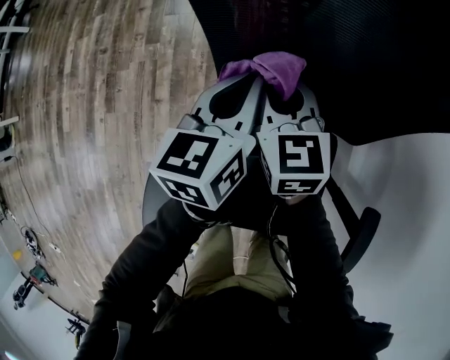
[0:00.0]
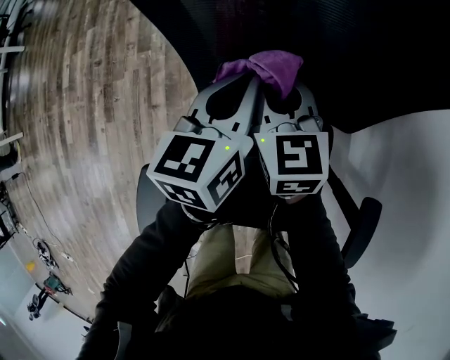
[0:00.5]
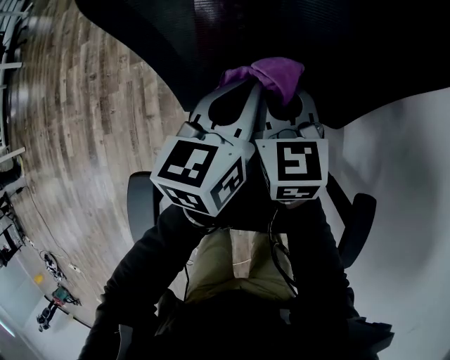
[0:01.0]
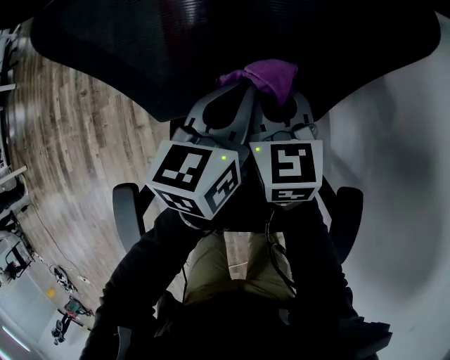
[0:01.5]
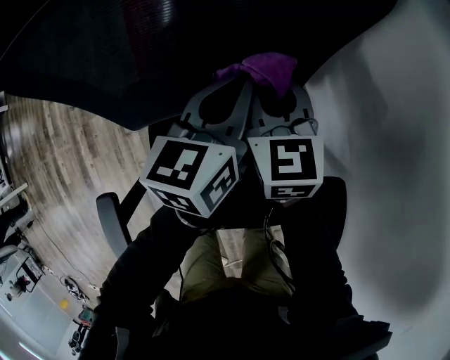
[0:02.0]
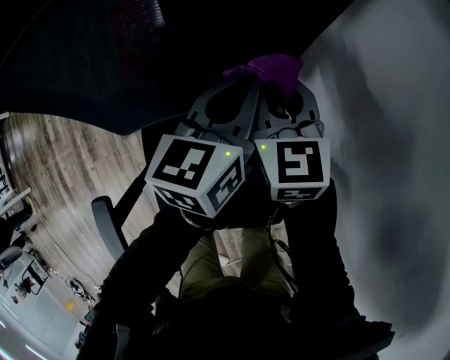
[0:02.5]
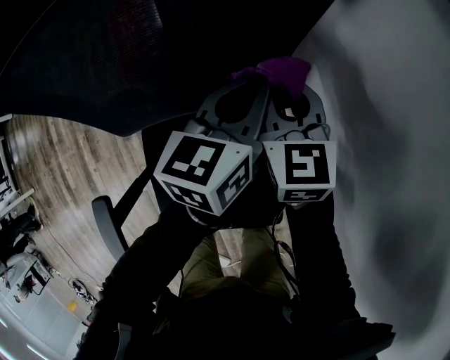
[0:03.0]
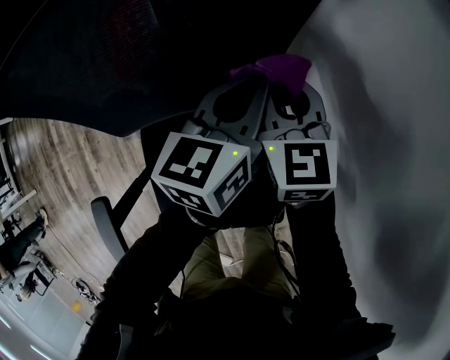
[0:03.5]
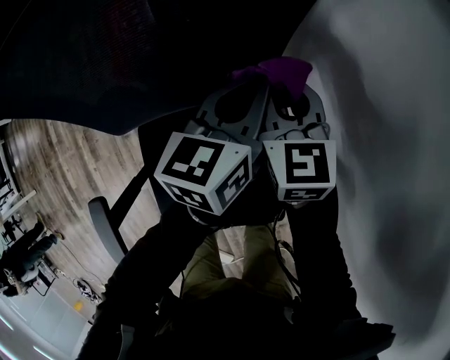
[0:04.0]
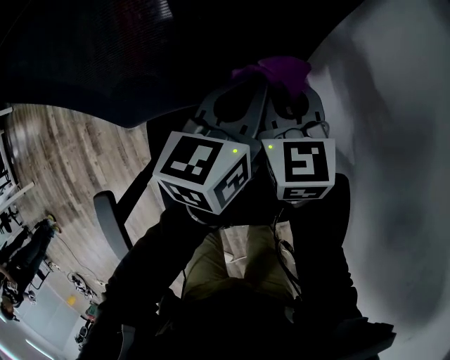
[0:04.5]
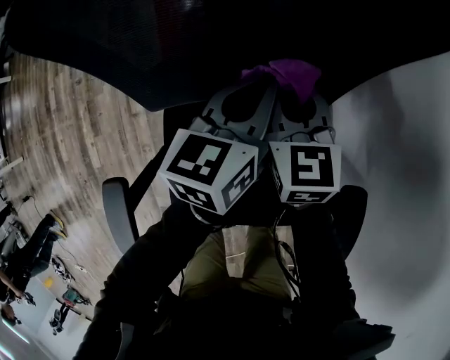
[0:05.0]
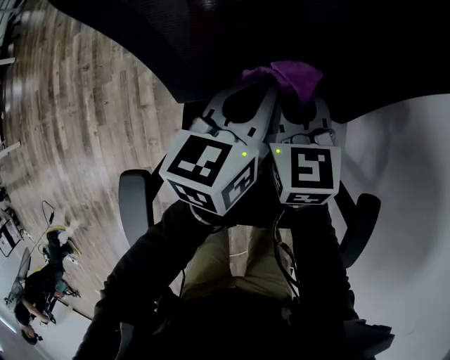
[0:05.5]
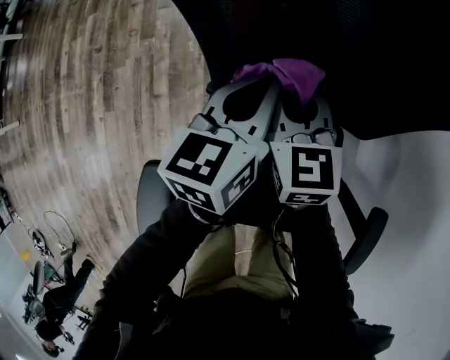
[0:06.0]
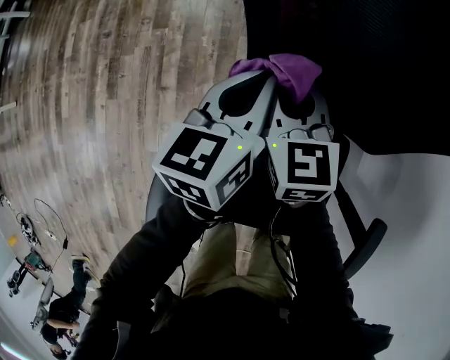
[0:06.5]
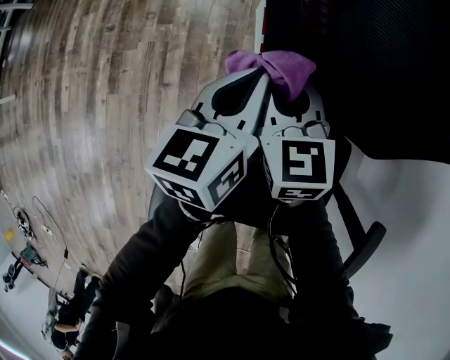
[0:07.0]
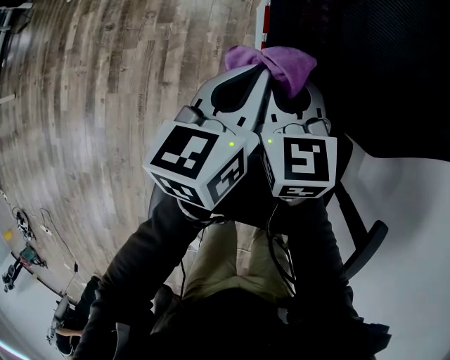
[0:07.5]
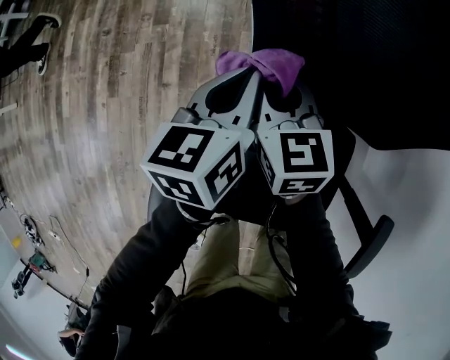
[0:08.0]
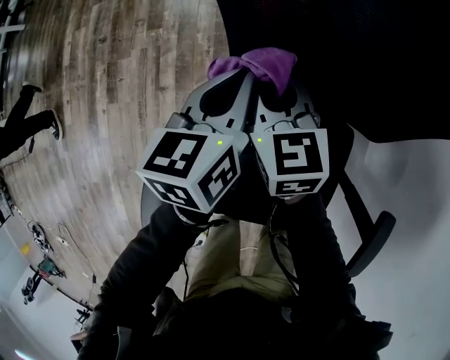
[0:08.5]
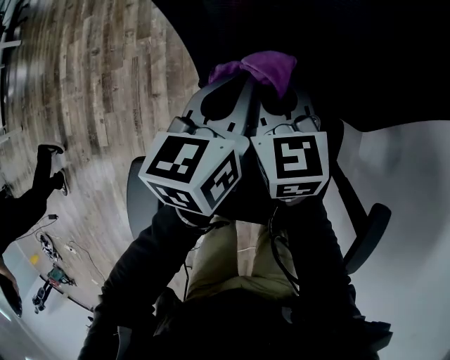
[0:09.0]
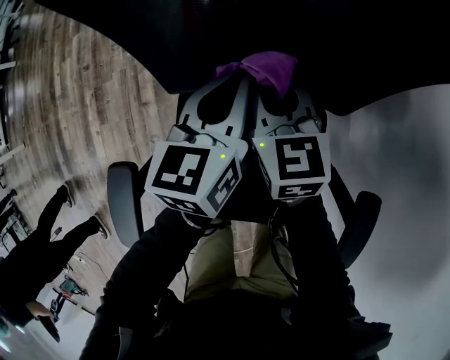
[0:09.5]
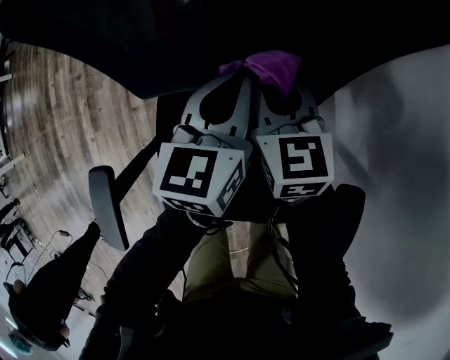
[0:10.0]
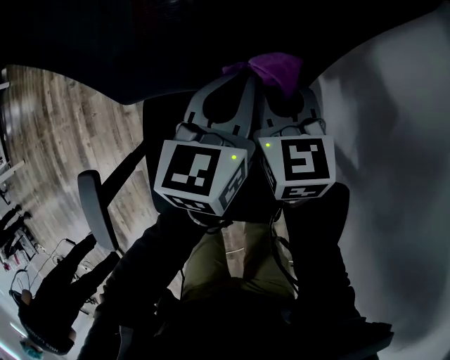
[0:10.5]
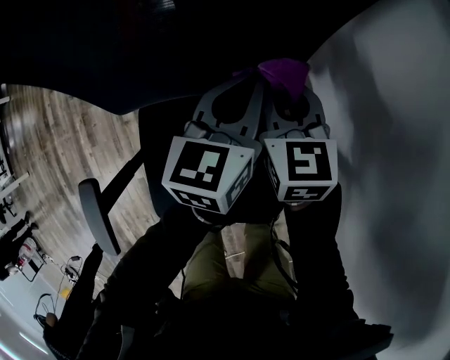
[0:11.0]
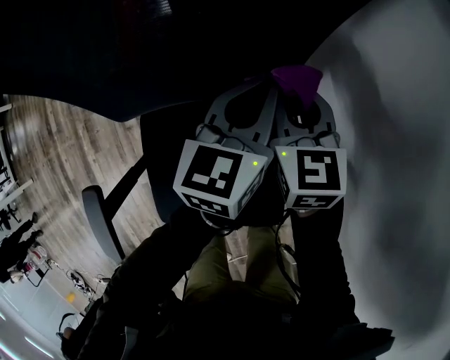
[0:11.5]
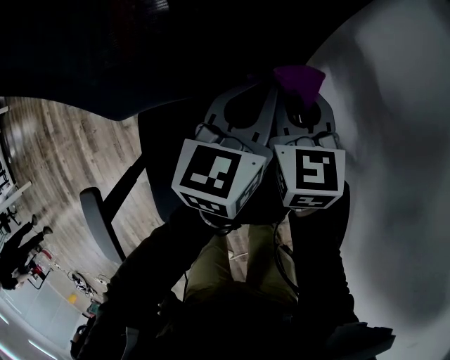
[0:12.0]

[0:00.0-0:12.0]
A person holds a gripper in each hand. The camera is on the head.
0:00.0 to 0:02.0: The two grippers go some 25 cm to the right.
0:02.0 to 0:04.0: Both grippers travel together to the right, approximately 10 cm.
0:04.0 to 0:06.0: The two grippers go about 30 cm to the left.
0:06.0 to 0:08.0: The two grippers go about 10 cm to the left.
0:08.0 to 0:10.0: The two grippers go roughly 25 cm to the right.
0:10.0 to 0:12.0: The grippers both shift to the right by roughly 10 cm.

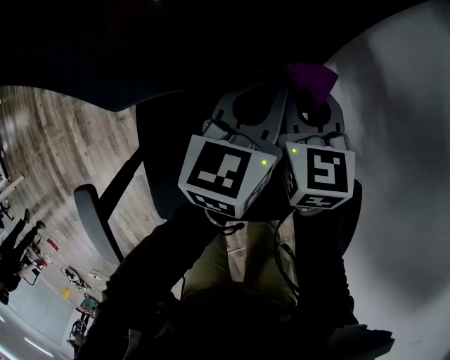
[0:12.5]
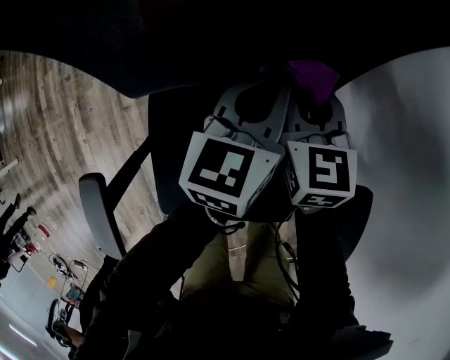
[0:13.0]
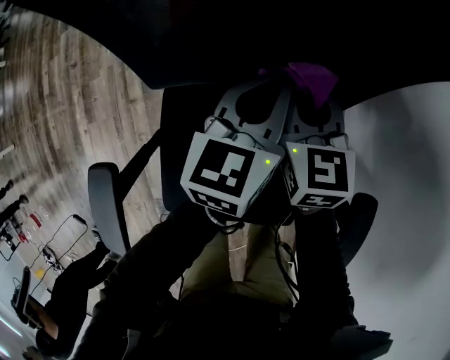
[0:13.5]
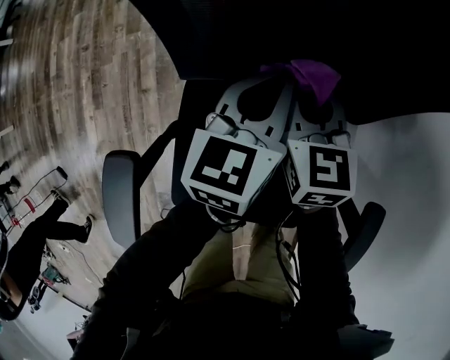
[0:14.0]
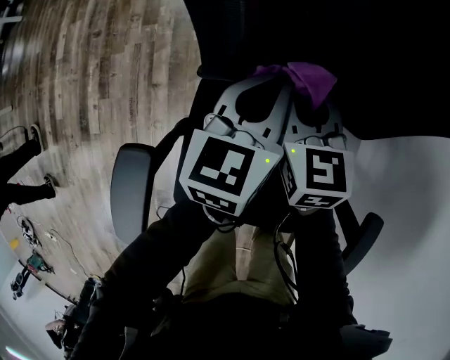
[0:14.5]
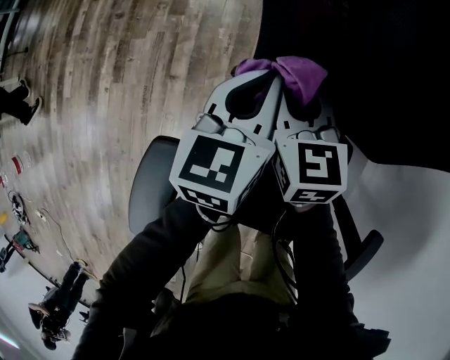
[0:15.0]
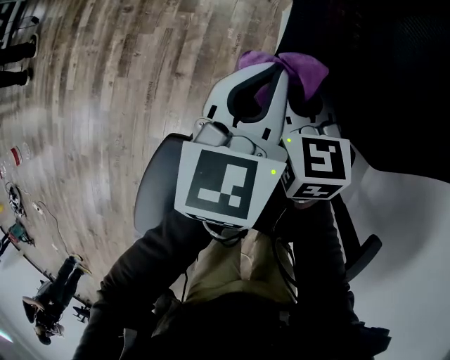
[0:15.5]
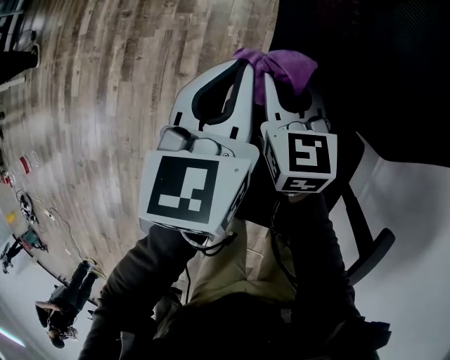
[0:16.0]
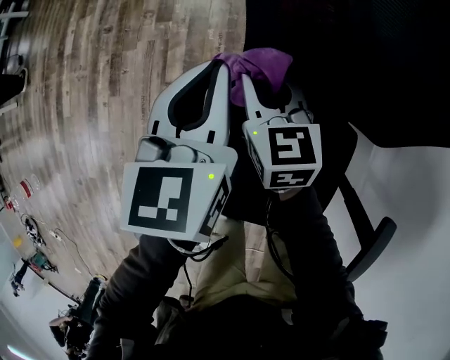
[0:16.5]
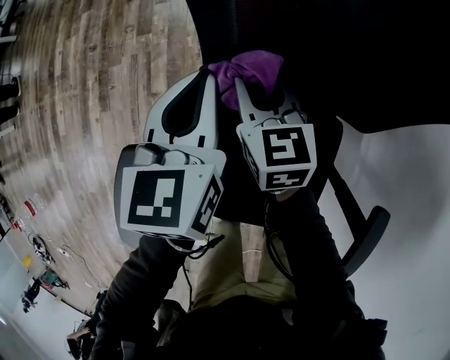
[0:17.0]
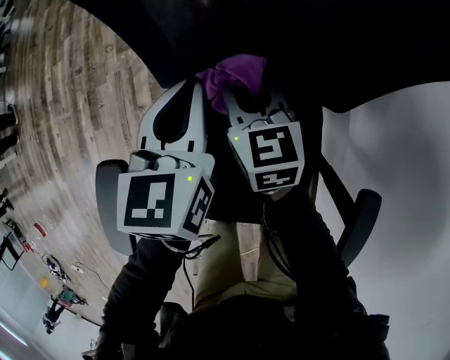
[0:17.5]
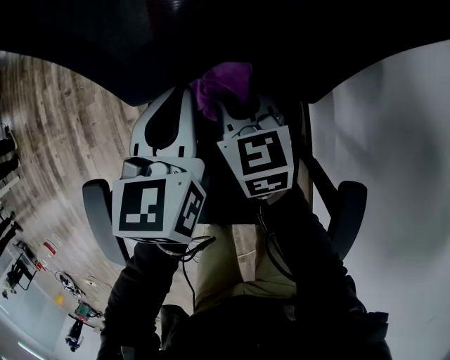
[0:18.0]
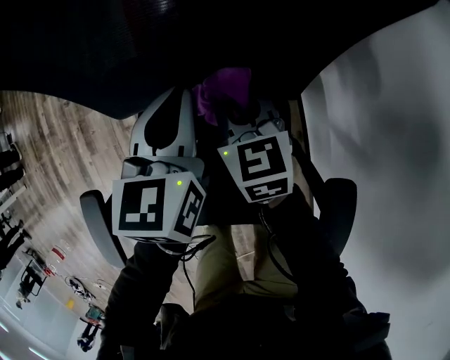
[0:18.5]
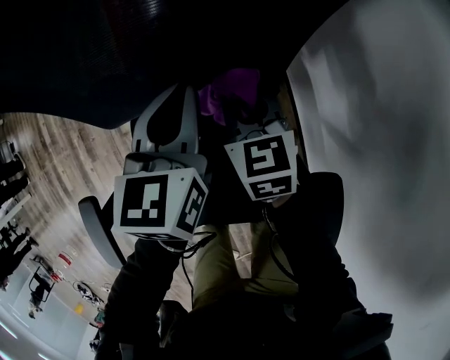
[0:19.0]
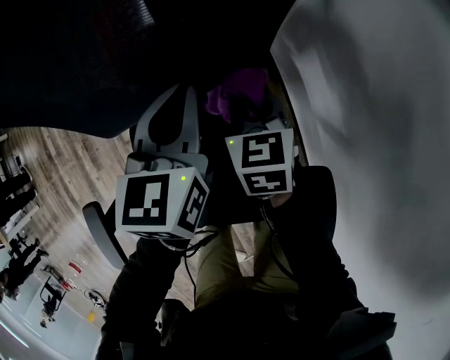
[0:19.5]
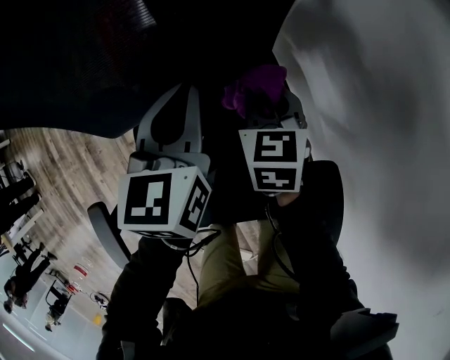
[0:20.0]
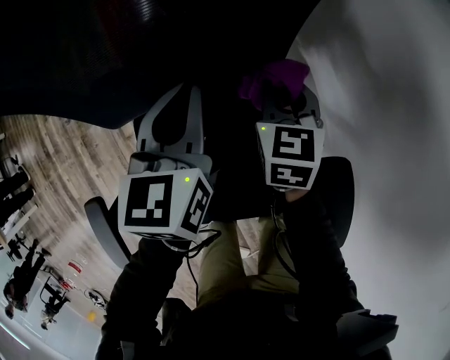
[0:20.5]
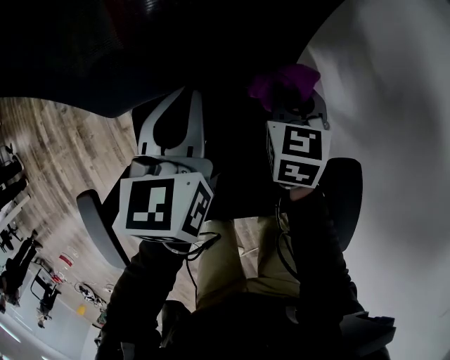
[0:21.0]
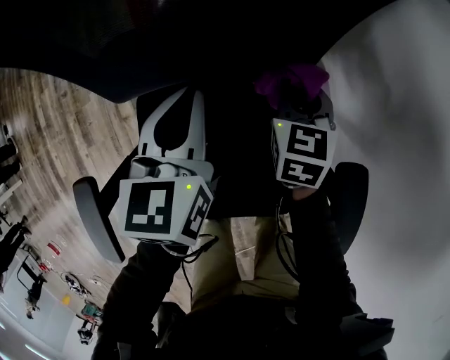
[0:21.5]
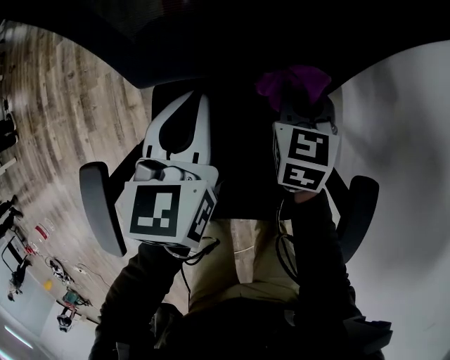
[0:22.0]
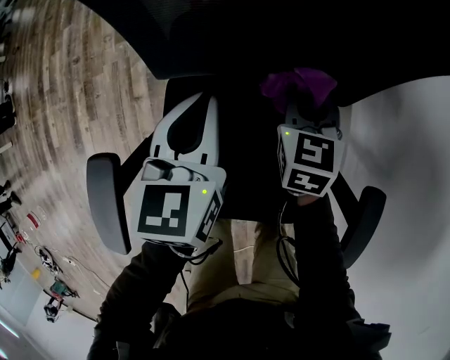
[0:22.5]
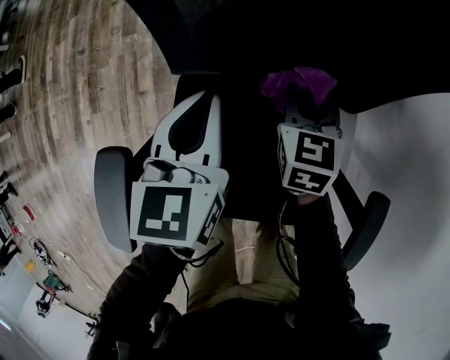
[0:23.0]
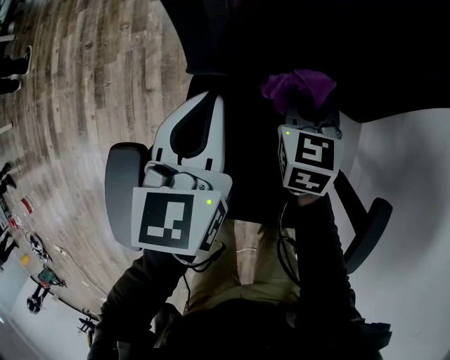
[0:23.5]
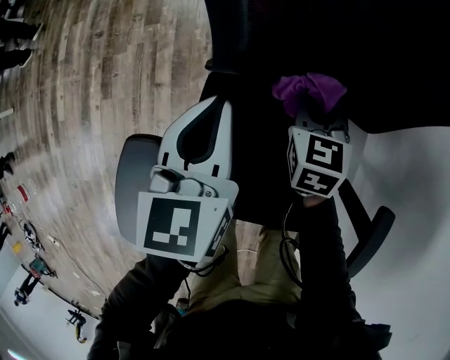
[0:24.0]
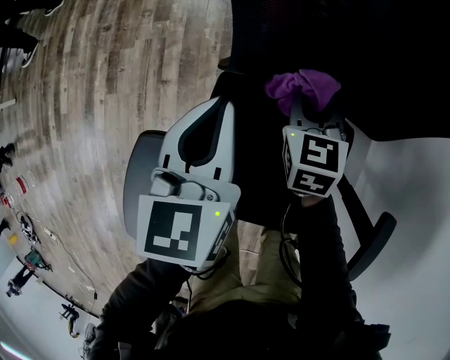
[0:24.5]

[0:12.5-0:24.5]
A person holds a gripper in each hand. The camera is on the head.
0:12.5 to 0:14.5: The two grippers go approximately 25 cm to the left. The right gripper rotates approximately 20 degrees.
0:14.5 to 0:16.5: Both grippers move to the left, some 15 cm.
0:16.5 to 0:18.5: Both grippers move to the right, some 25 cm.
0:18.5 to 0:20.5: The left gripper moves to the right, some 10 cm. Meanwhile the right gripper shifts some 15 cm to the right, and turns by approximately 30 degrees.
0:20.5 to 0:22.5: The grippers both shift to the left by about 20 cm.
0:22.5 to 0:24.5: The two grippers go roughly 15 cm to the left.

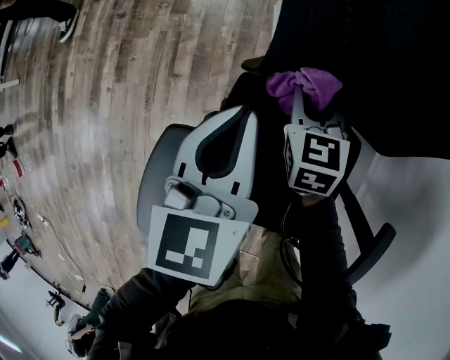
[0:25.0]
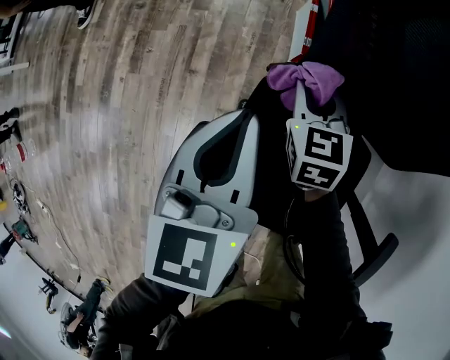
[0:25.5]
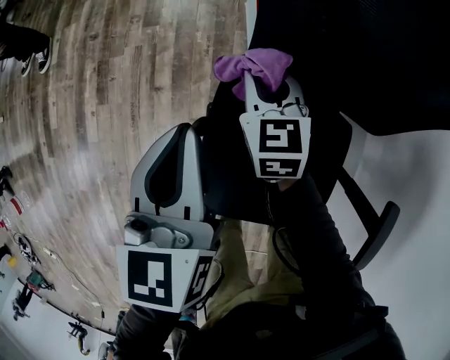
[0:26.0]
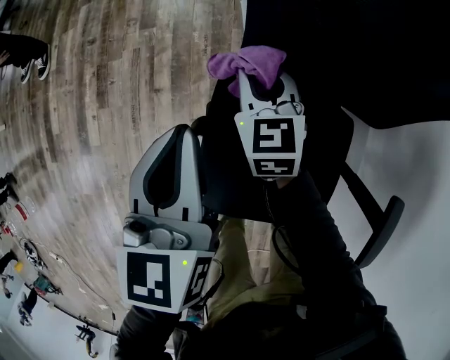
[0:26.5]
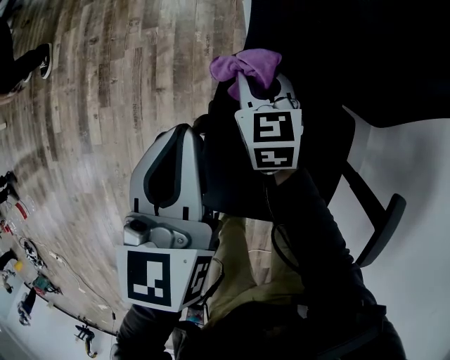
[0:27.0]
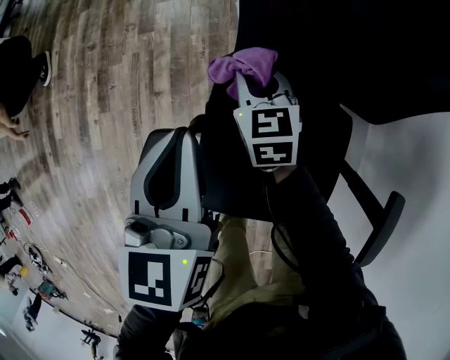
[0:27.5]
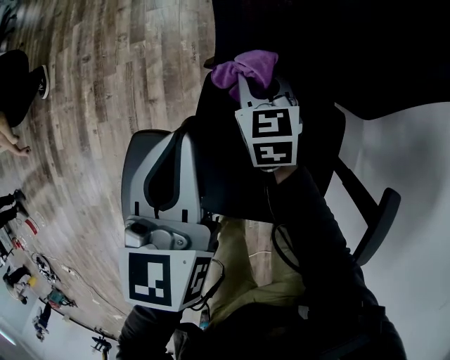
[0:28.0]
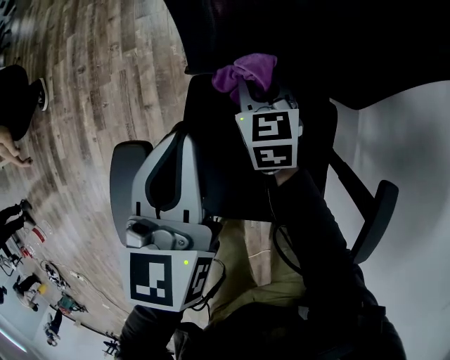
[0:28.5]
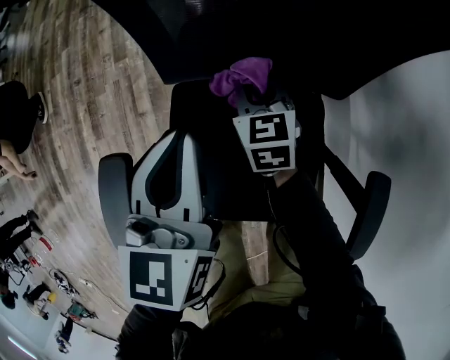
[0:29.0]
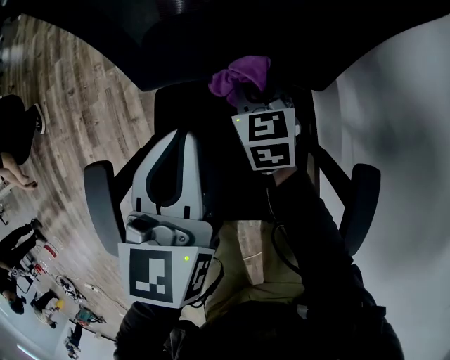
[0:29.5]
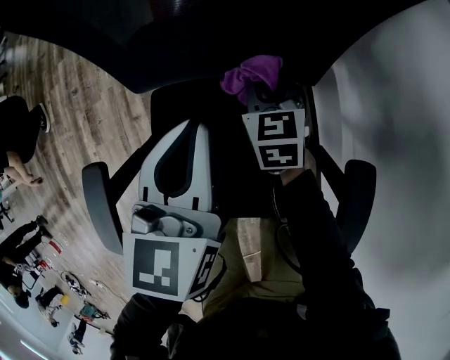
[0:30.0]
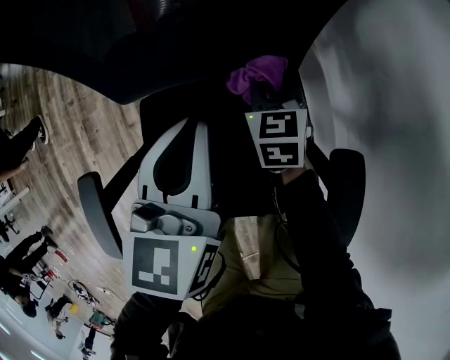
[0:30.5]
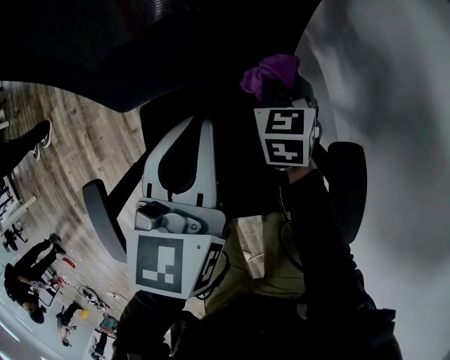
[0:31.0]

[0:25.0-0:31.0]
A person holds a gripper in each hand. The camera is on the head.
0:25.0 to 0:27.0: Both grippers travel together to the left, roughly 10 cm.
0:27.0 to 0:29.0: The grippers both shift to the right by about 20 cm.
0:29.0 to 0:31.0: The two grippers go approximately 20 cm to the right.
